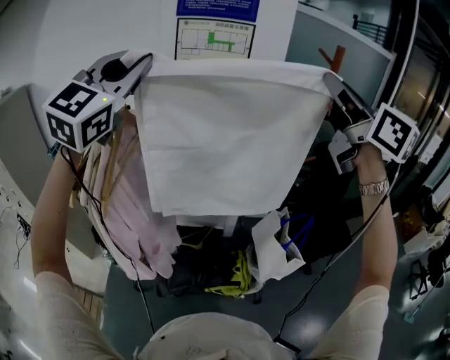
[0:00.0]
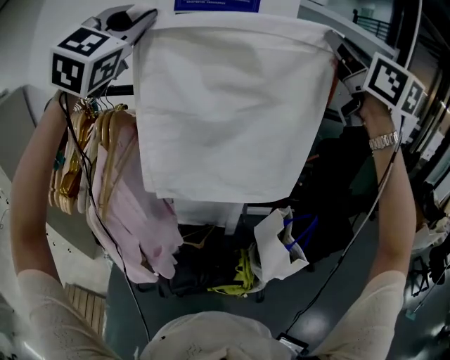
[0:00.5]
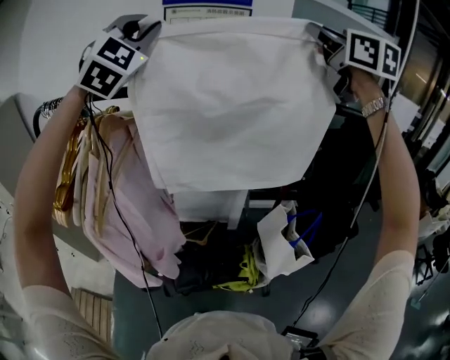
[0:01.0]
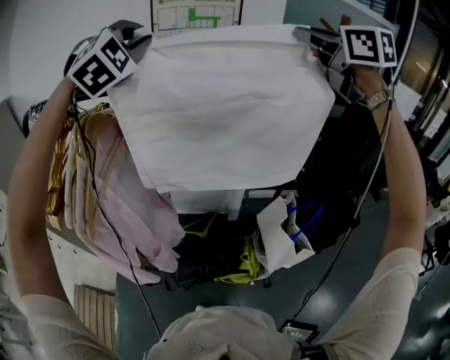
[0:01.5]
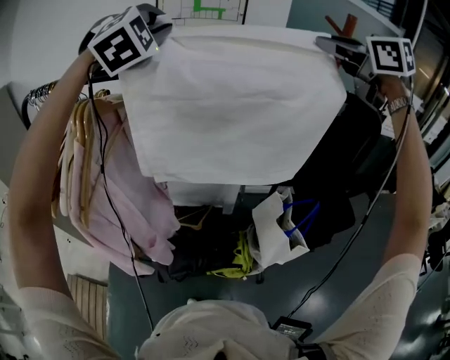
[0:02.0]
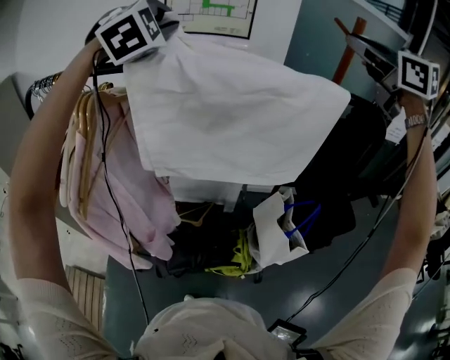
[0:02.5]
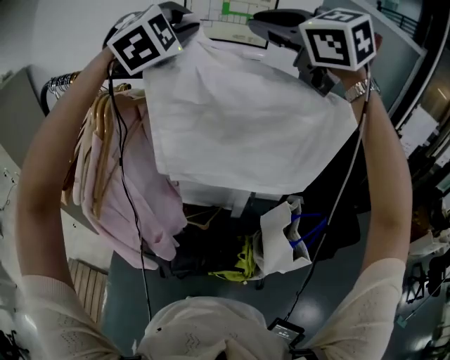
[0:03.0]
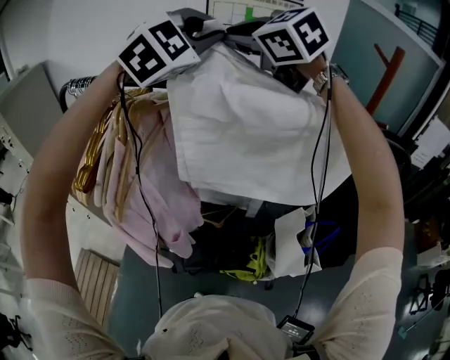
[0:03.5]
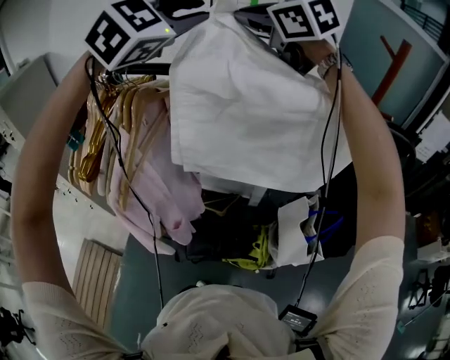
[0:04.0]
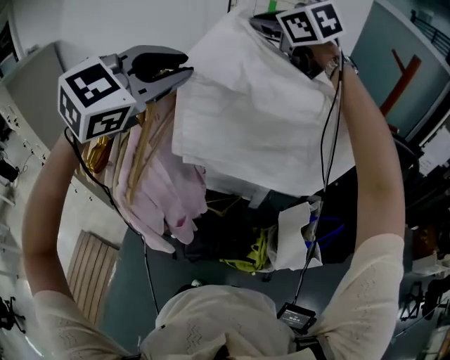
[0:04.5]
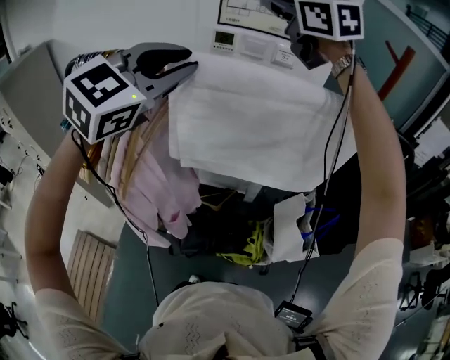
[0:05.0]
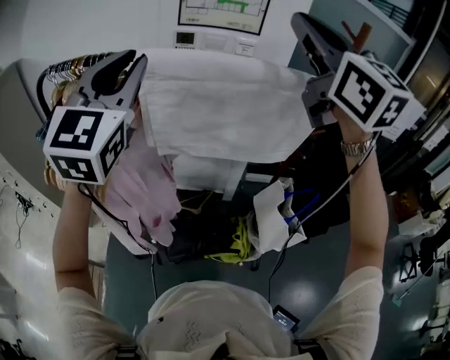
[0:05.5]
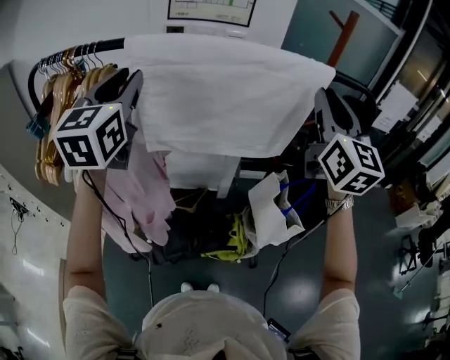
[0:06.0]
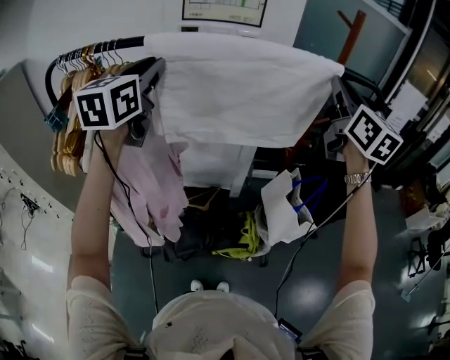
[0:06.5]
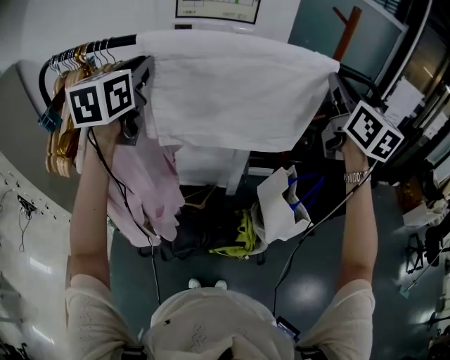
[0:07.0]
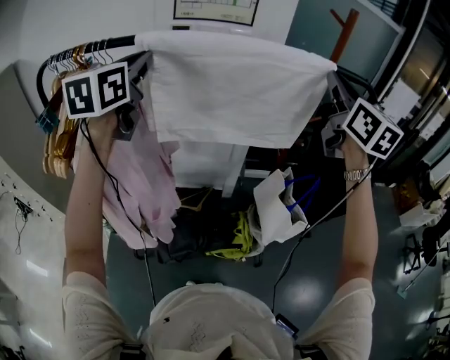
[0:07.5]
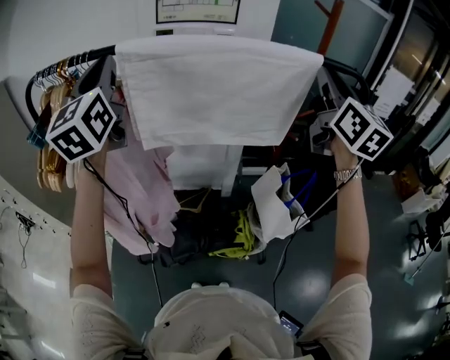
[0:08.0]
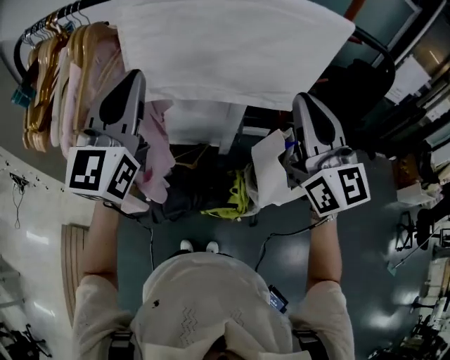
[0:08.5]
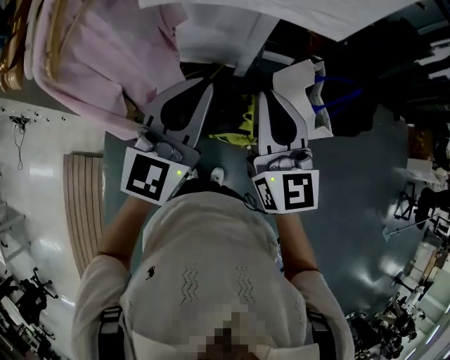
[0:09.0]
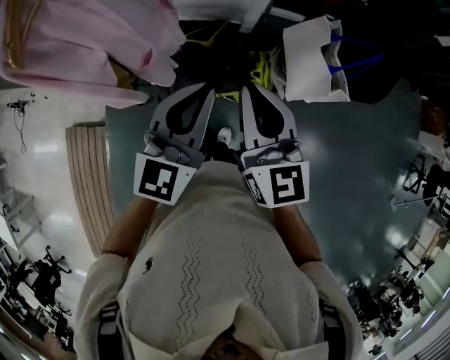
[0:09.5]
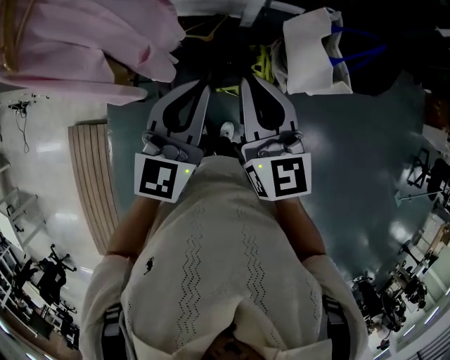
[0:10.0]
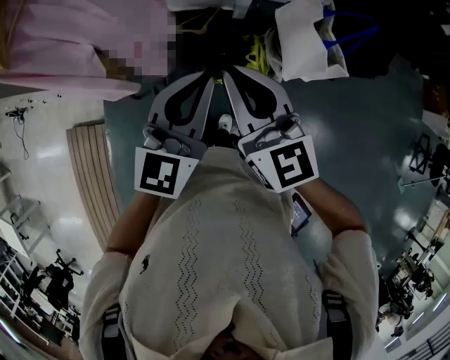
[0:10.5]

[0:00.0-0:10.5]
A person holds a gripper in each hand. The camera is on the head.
0:00.0 to 0:02.0: The two grippers go roughly 20 cm forward. The left gripper turns by about 50 degrees. Meanwhile the right gripper angles its fingers downward, by roughly 30 degrees.
0:02.0 to 0:04.0: The right gripper shifts some 30 cm to the left, and changes its angle by roughly 30 degrees, while the left gripper moves about 10 cm.
0:04.0 to 0:06.5: The left gripper moves downward, backward and to the left, some 15 cm, and twists roughly 50 degrees counterclockwise, seen from behind; the right gripper shifts roughly 35 cm to the right and backward, and turns by some 50 degrees.
0:06.5 to 0:08.5: The right gripper shifts some 20 cm downward, backward and to the left, while the left gripper travels backward and downward by approximately 15 cm.
0:08.5 to 0:10.5: The right gripper goes about 30 cm downward, backward and to the left, and turns by approximately 20 degrees; the left gripper goes roughly 35 cm downward, backward and to the right, and swivels approximately 20 degrees.

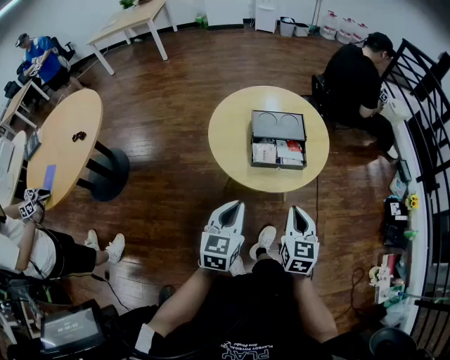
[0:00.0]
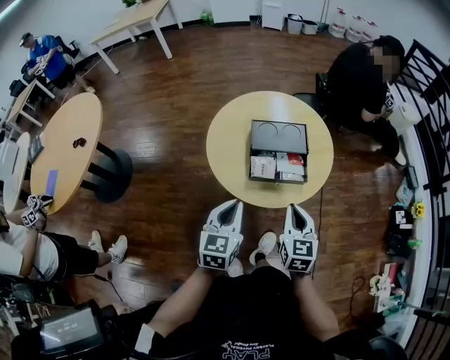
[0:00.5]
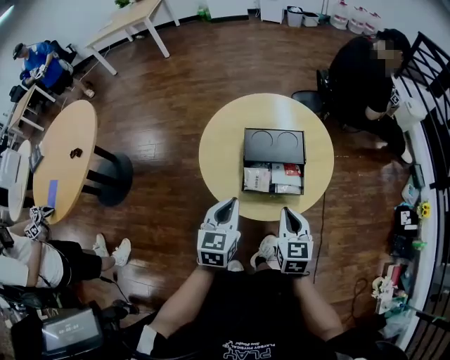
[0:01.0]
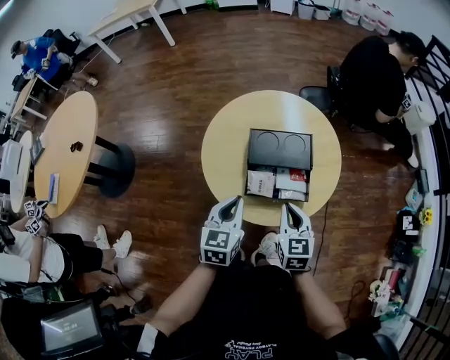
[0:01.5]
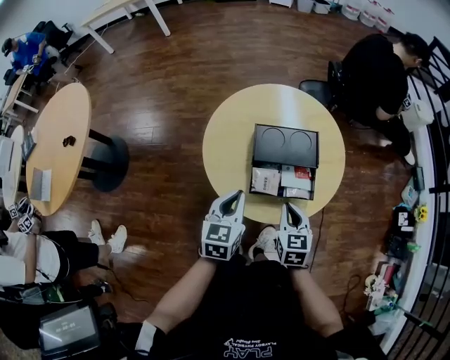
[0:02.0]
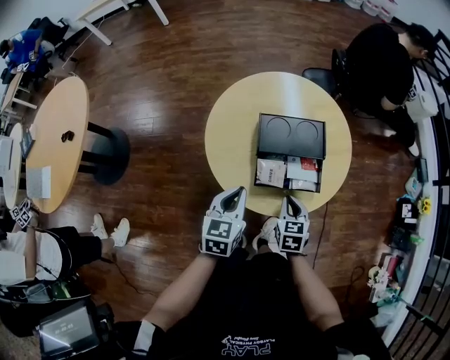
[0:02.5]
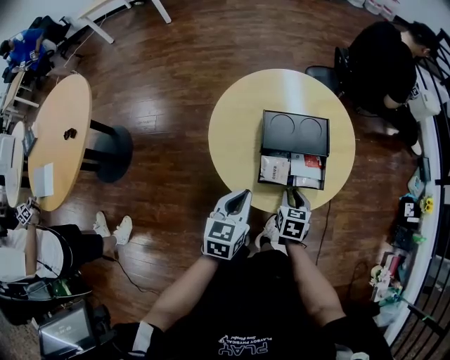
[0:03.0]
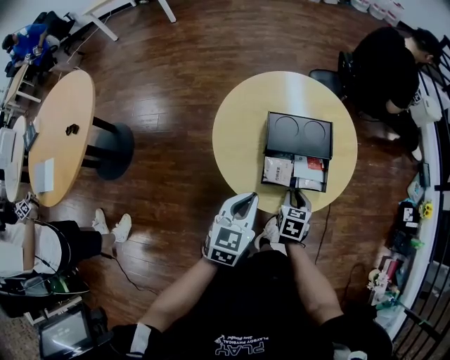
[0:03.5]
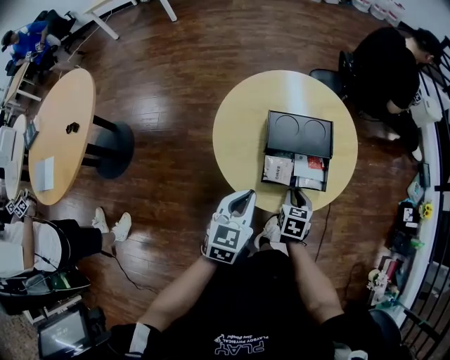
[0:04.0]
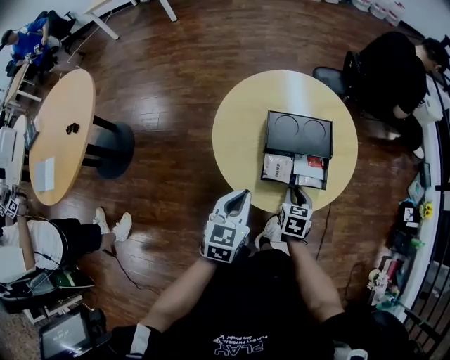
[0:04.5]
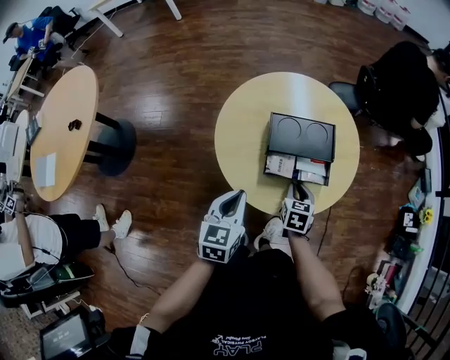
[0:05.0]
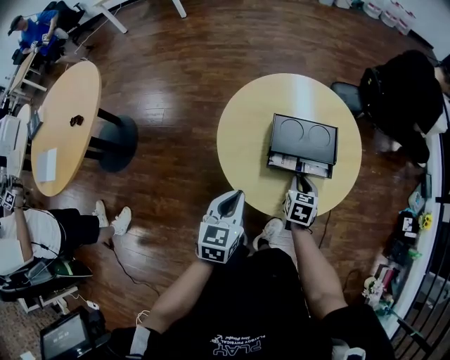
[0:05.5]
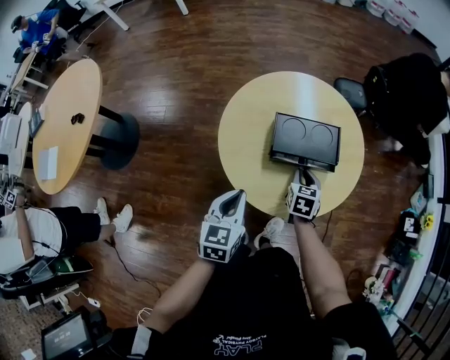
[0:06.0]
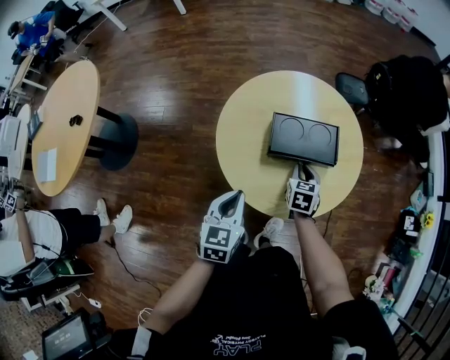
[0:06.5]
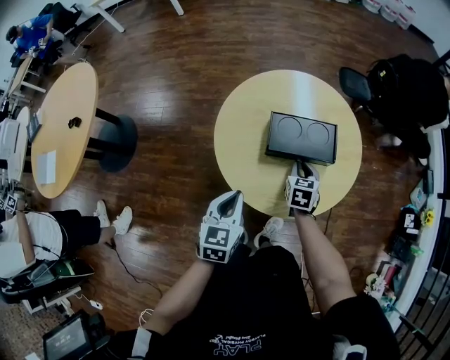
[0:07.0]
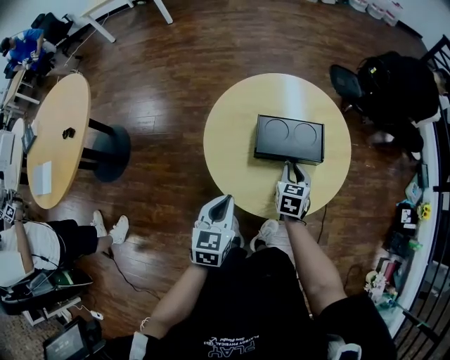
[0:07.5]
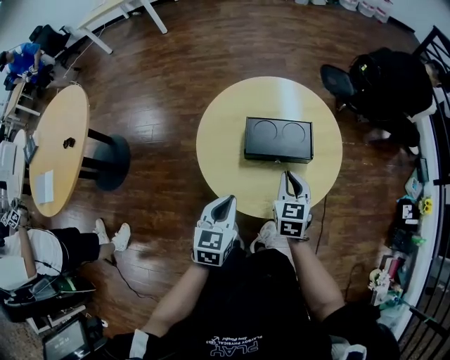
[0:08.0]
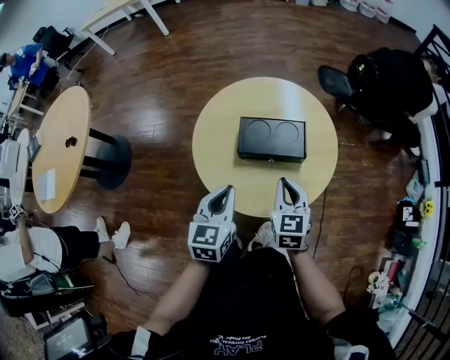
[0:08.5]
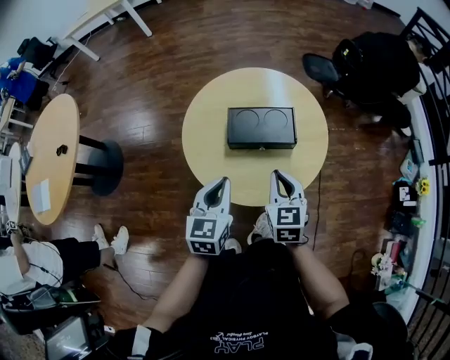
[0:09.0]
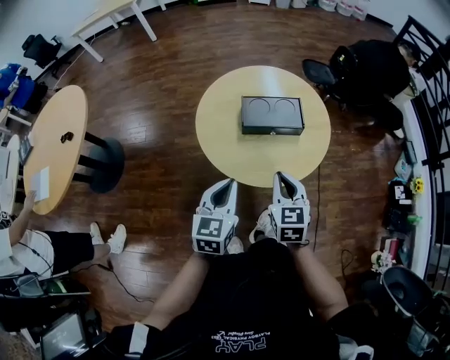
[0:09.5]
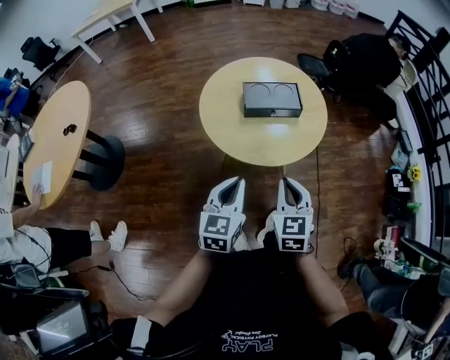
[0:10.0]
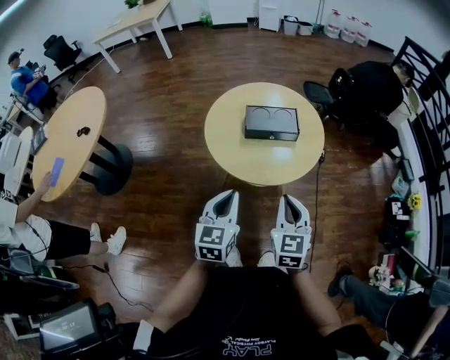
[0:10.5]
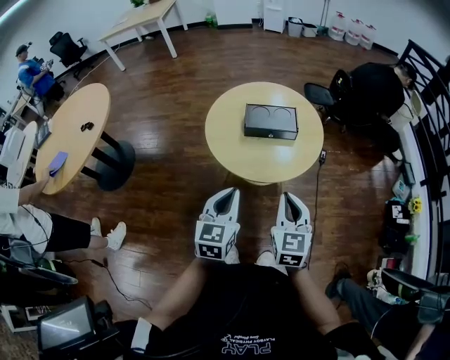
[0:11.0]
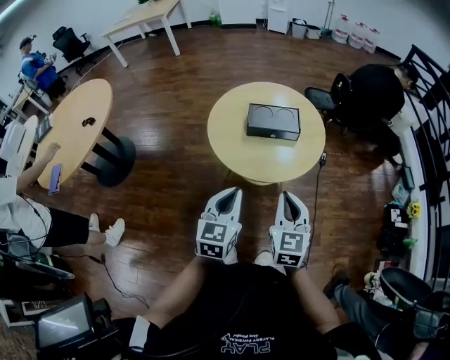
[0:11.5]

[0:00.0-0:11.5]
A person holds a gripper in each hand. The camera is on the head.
0:00.0 to 0:02.0: The right gripper travels forward and downward by about 20 cm. The left gripper shifts about 20 cm forward.
0:02.0 to 0:04.0: The right gripper moves downward, about 10 cm.
0:04.0 to 0:06.0: The right gripper moves forward, approximately 10 cm.
0:06.0 to 0:07.5: There are only small adjustments of the grippers.
0:07.5 to 0:09.5: The left gripper moves backward and upward, approximately 10 cm. The right gripper travels backward and upward by approximately 25 cm.
0:09.5 to 0:11.5: The right gripper goes approximately 15 cm backward and upward; the left gripper travels backward by about 10 cm.

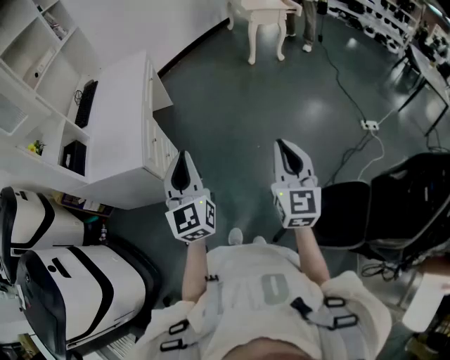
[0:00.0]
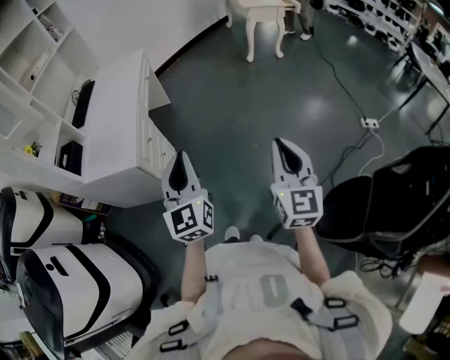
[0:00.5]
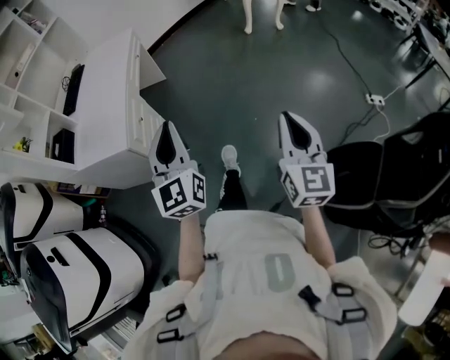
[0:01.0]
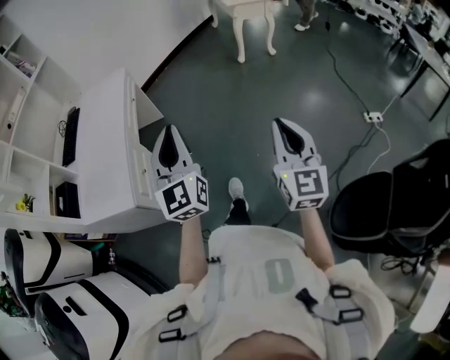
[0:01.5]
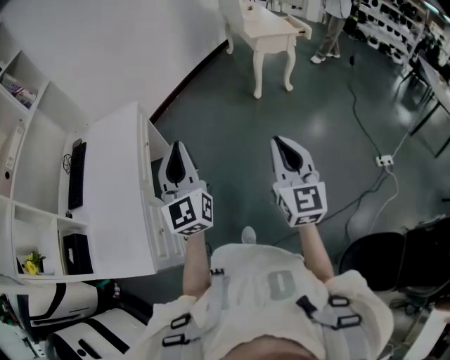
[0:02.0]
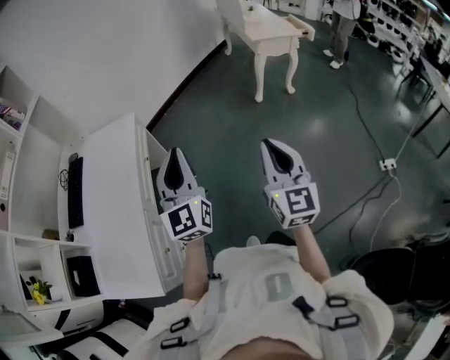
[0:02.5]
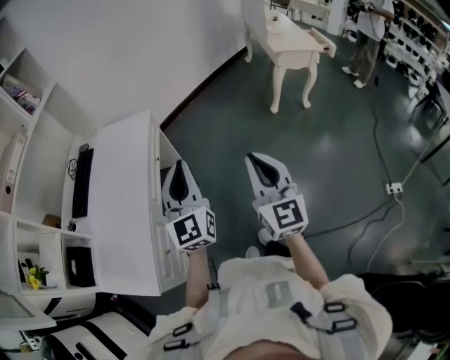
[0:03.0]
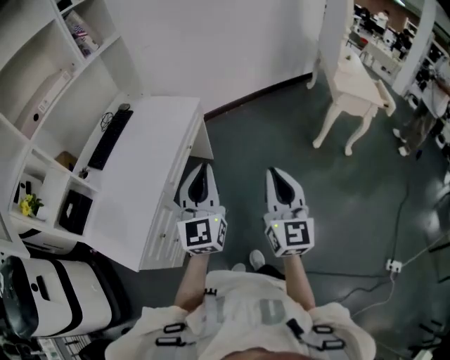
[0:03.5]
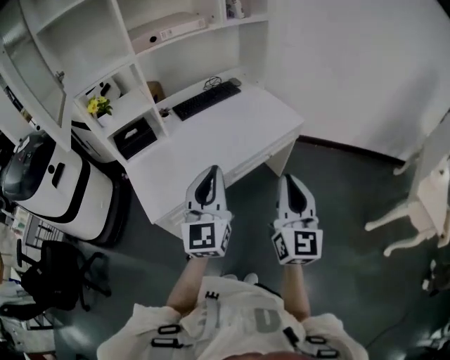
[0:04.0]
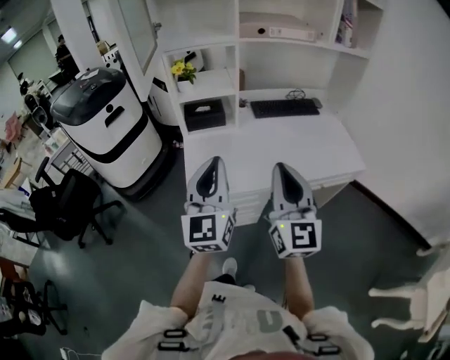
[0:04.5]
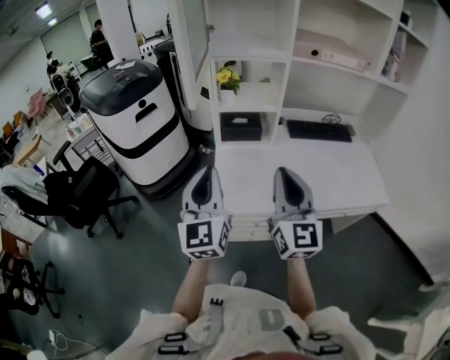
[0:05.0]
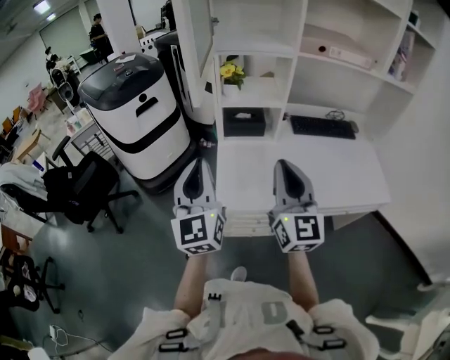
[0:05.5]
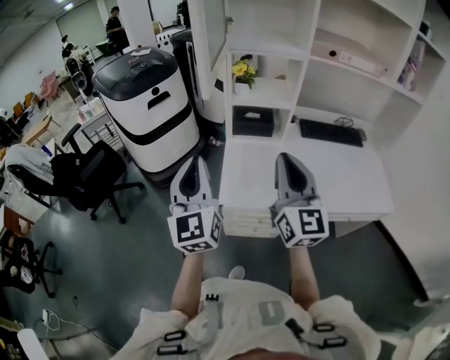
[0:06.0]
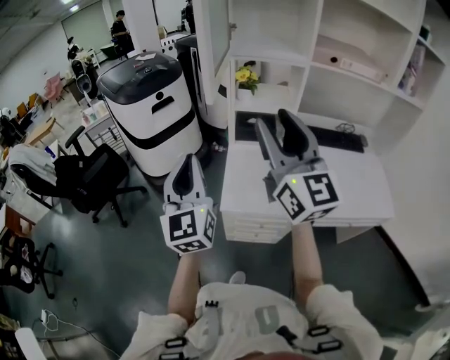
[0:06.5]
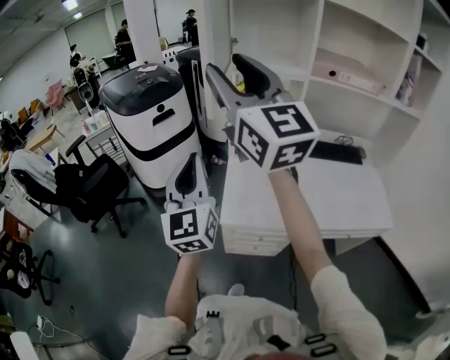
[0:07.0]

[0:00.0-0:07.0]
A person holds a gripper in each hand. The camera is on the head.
0:00.0 to 0:02.0: Both grippers are carried forward, about 40 cm.
0:02.0 to 0:03.5: The right gripper is displaced forward and to the left by roughly 20 cm, and changes its angle by approximately 20 degrees. Meanwhile the left gripper heads forward, covering roughly 10 cm.
0:03.5 to 0:05.0: The pair of grippers is taken approximately 40 cm. The left gripper turns by about 70 degrees. Meanwhile the right gripper swivels roughly 70 degrees.
0:05.0 to 0:07.0: The right gripper moves upward, to the left and forward, some 30 cm, turns by roughly 30 degrees, and opens, while the left gripper is displaced upward and to the left by about 10 cm.
